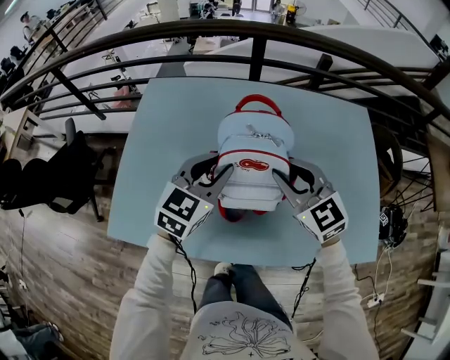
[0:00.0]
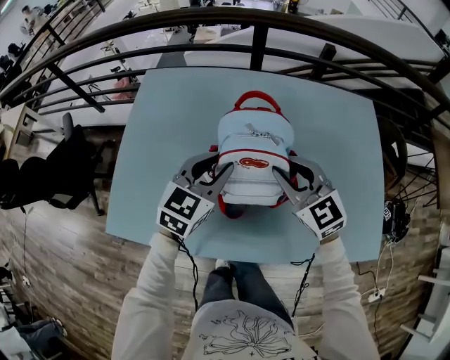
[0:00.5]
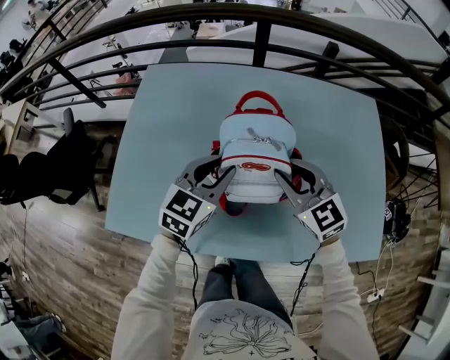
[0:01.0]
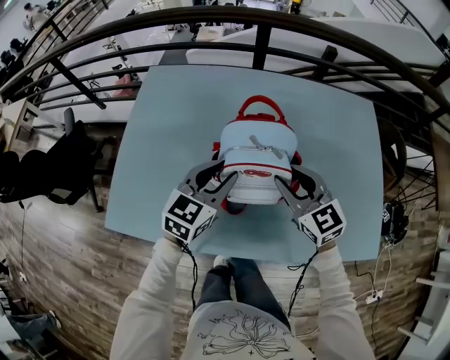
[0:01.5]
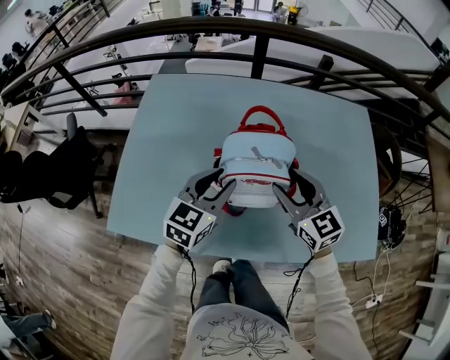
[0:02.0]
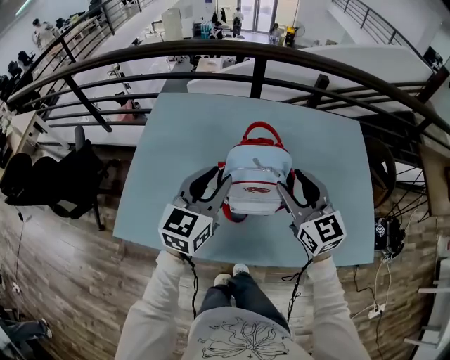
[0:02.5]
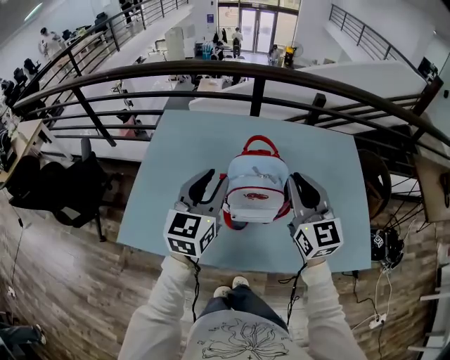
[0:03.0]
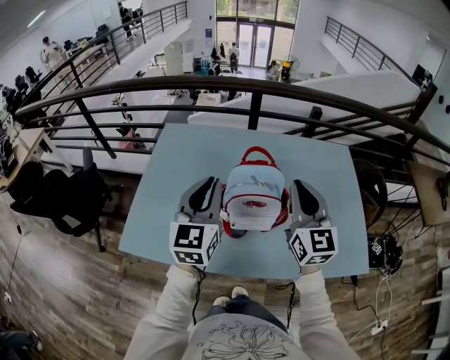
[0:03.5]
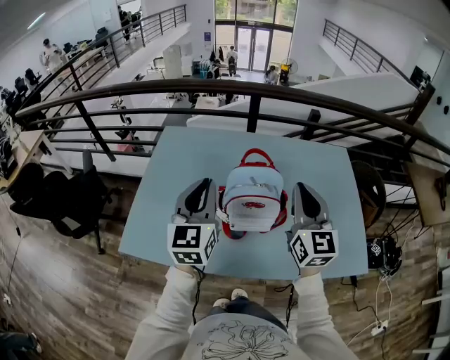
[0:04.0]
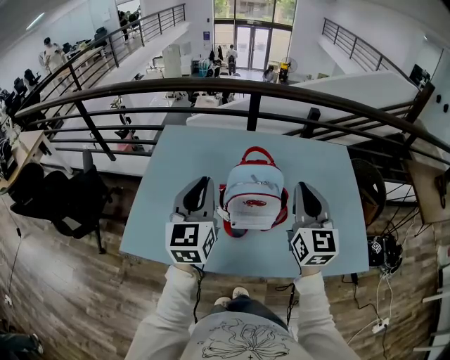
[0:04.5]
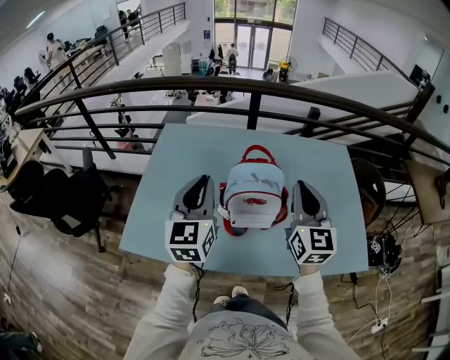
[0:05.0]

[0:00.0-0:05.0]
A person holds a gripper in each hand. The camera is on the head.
0:00.0 to 0:02.5: The left gripper goes roughly 5 cm backward, while the right gripper ends up about 5 cm from where it was, and opens up.
0:02.5 to 0:05.0: The left gripper moves upward and to the left, approximately 10 cm, rotates approximately 20 degrees, and closes. Meanwhile the right gripper shifts approximately 10 cm upward, swivels some 20 degrees, and closes up.

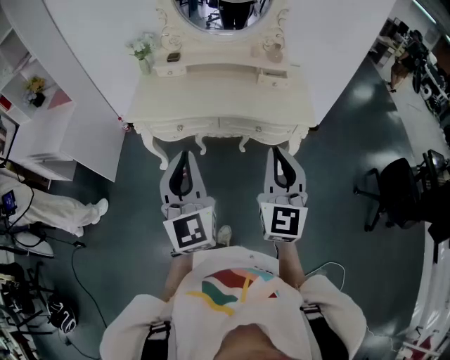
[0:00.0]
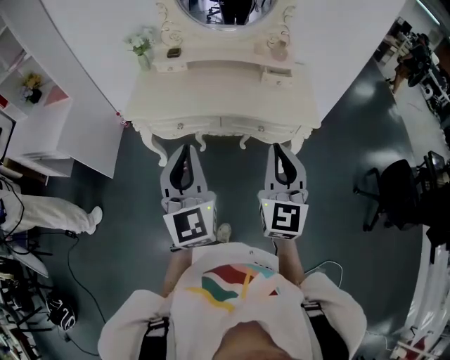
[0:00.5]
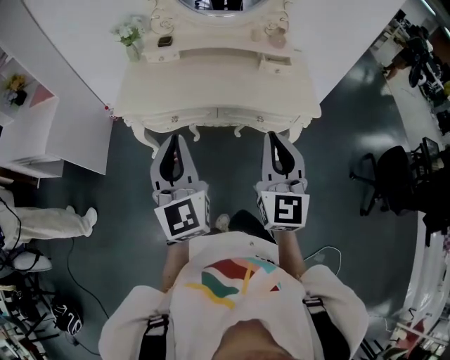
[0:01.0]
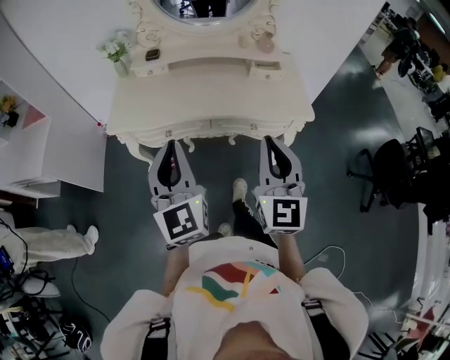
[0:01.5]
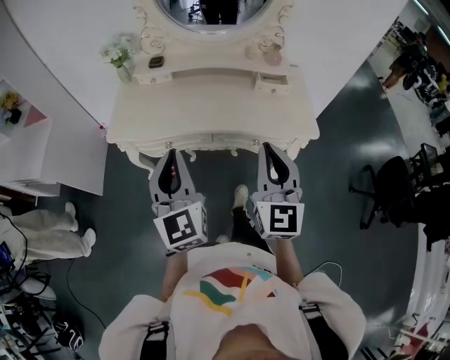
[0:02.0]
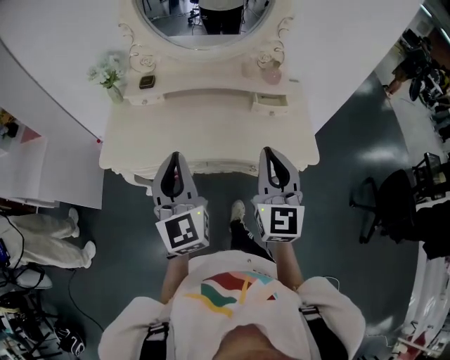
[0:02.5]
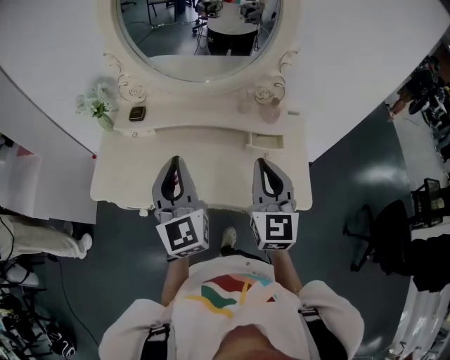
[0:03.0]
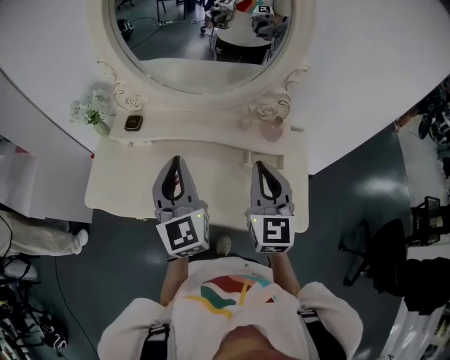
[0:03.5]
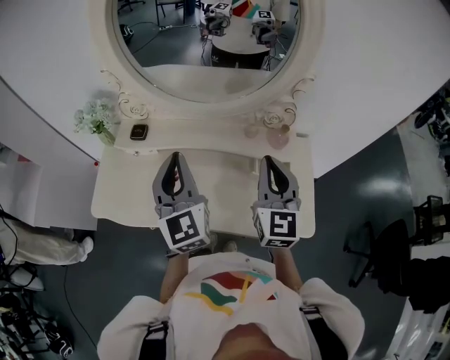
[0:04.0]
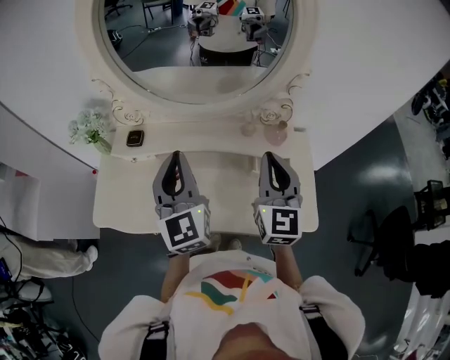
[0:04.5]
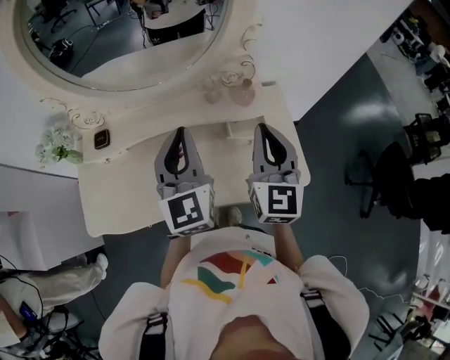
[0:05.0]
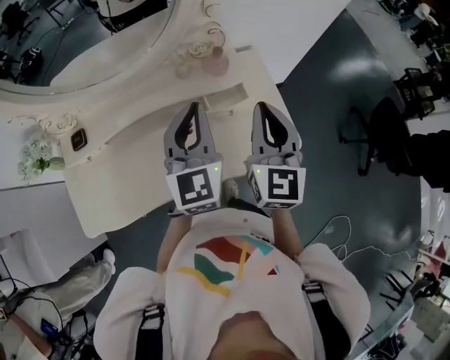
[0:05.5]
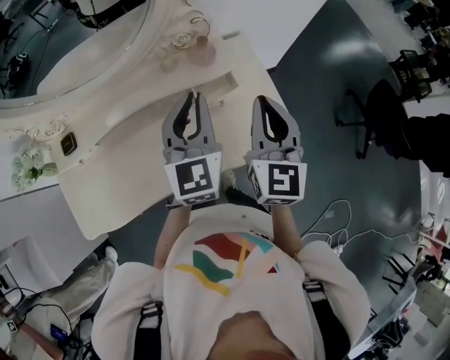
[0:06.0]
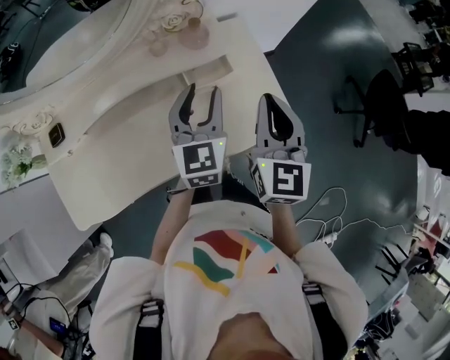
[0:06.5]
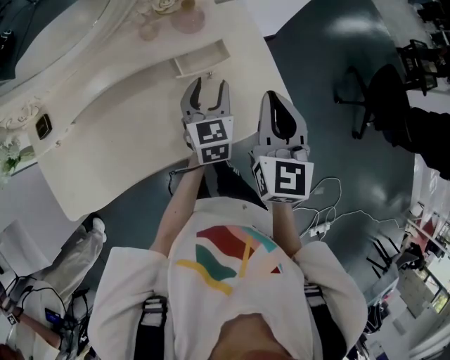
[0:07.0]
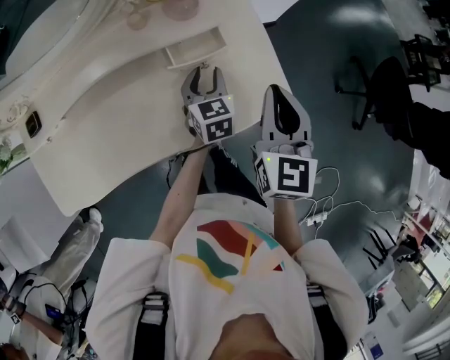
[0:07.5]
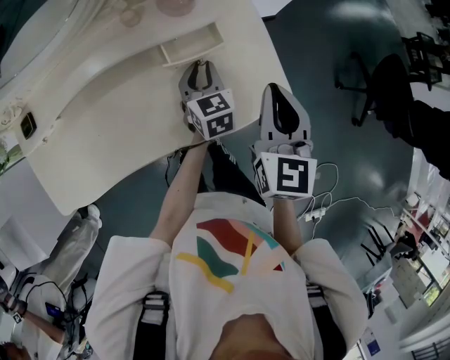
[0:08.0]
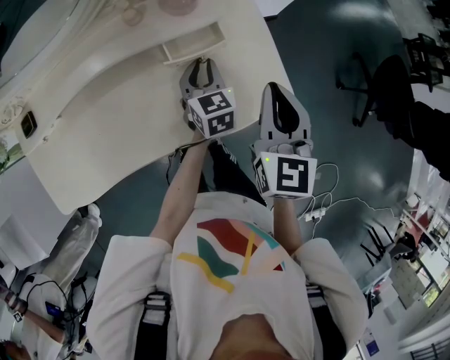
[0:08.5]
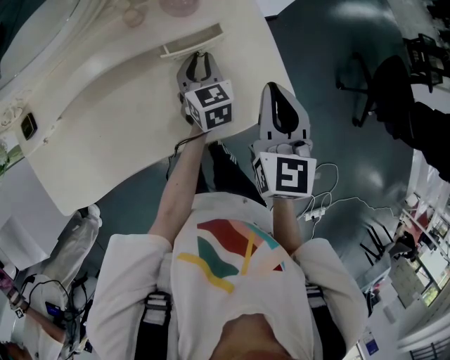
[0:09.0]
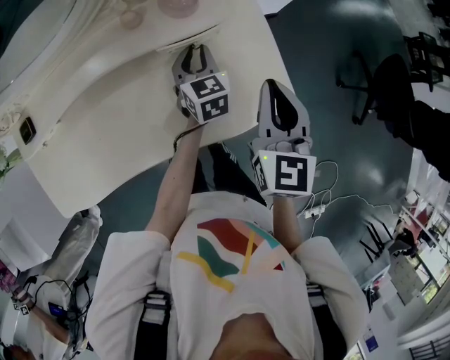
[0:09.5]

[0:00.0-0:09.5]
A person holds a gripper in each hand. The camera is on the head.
0:00.0 to 0:02.0: The two grippers go approximately 15 cm forward.
0:02.0 to 0:04.0: The two grippers go roughly 35 cm forward.
0:04.0 to 0:05.5: The right gripper changes place by approximately 10 cm, and turns by approximately 20 degrees; the left gripper changes place by about 20 cm, and turns by roughly 40 degrees.
0:05.5 to 0:07.5: The left gripper shifts roughly 30 cm downward, angles its fingers downward, by about 30 degrees, and opens, while the right gripper is displaced downward and to the right by approximately 15 cm.
0:07.5 to 0:09.5: The left gripper goes roughly 5 cm forward.

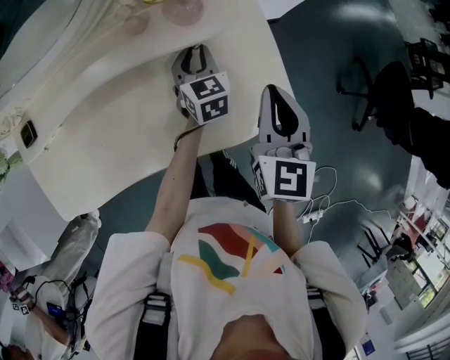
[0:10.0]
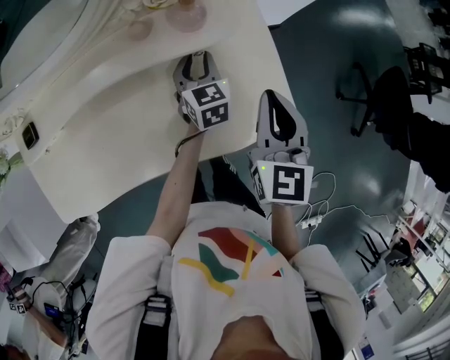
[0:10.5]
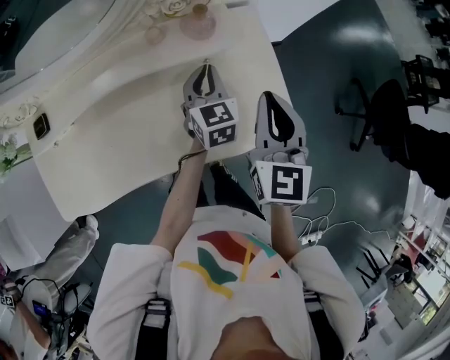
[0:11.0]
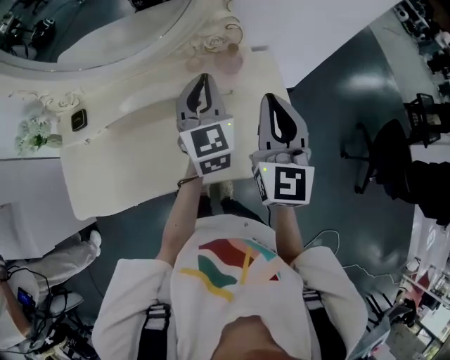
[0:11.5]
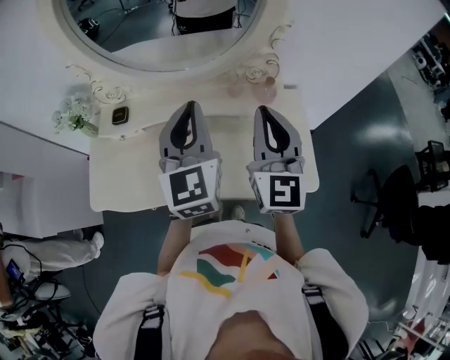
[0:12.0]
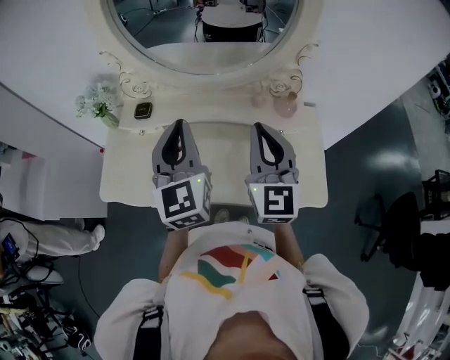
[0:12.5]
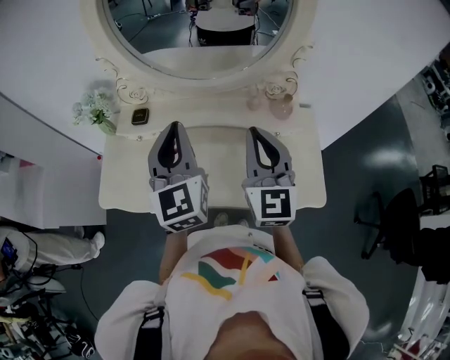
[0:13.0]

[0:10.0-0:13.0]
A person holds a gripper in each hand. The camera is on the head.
0:10.0 to 0:11.5: The left gripper travels upward by about 25 cm, and rotates about 20 degrees; the right gripper is displaced upward and to the left by approximately 15 cm, and swivels about 20 degrees.
0:11.5 to 0:13.0: The left gripper moves to the left and upward, roughly 25 cm, and changes its angle by approximately 20 degrees. Meanwhile the right gripper goes about 15 cm to the left.

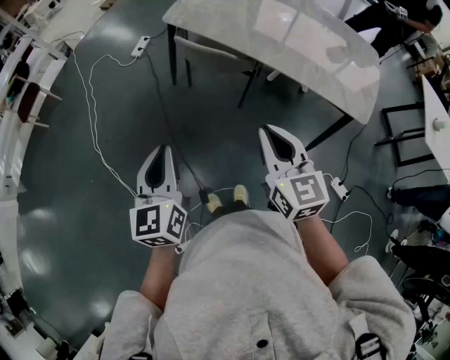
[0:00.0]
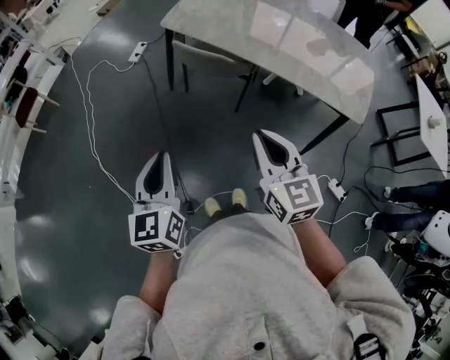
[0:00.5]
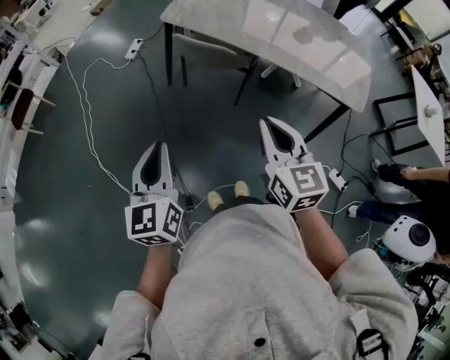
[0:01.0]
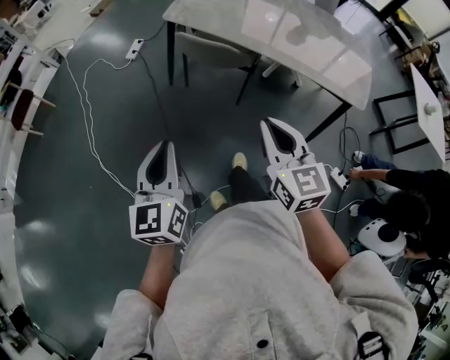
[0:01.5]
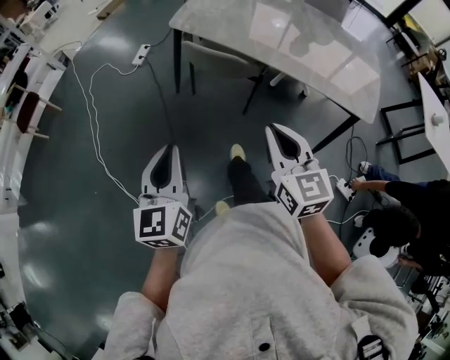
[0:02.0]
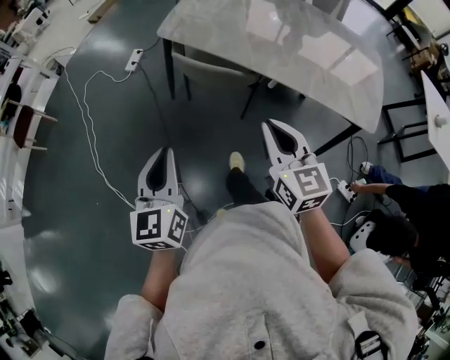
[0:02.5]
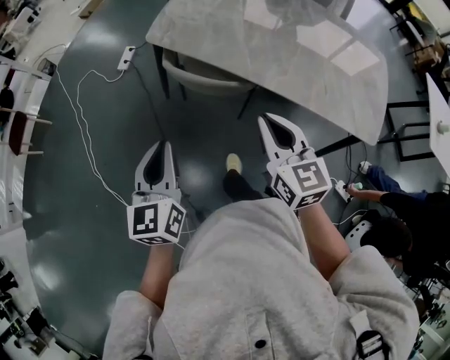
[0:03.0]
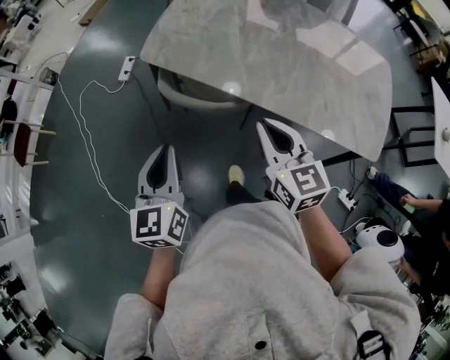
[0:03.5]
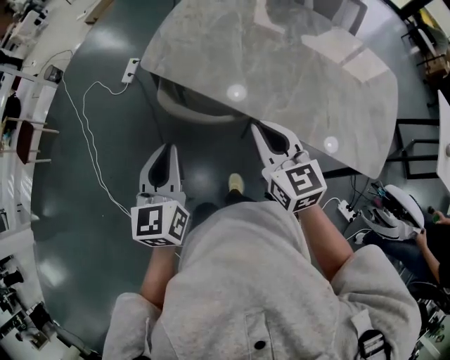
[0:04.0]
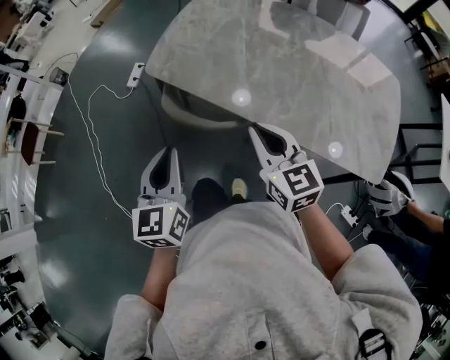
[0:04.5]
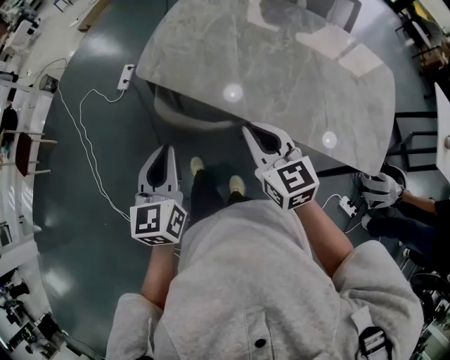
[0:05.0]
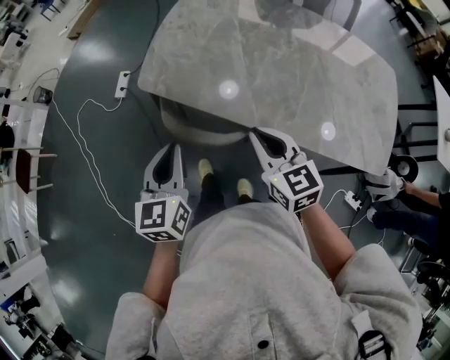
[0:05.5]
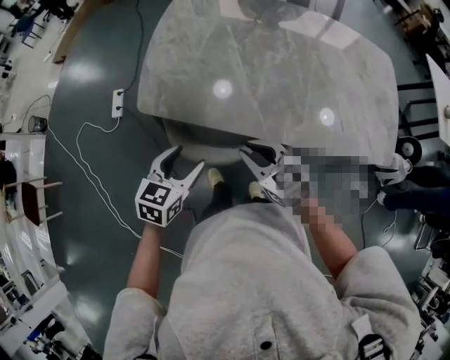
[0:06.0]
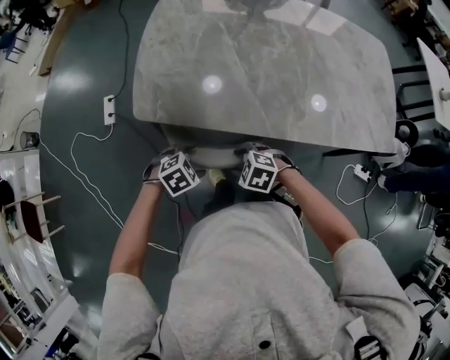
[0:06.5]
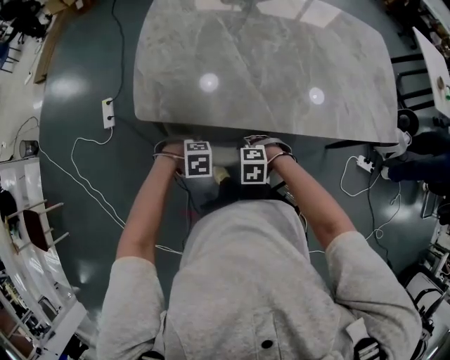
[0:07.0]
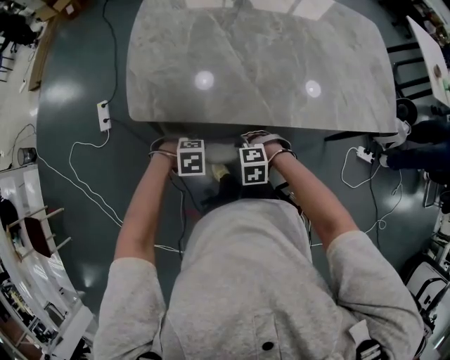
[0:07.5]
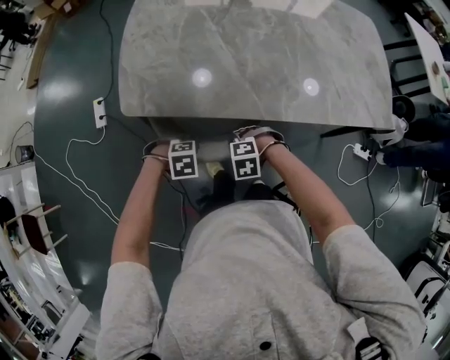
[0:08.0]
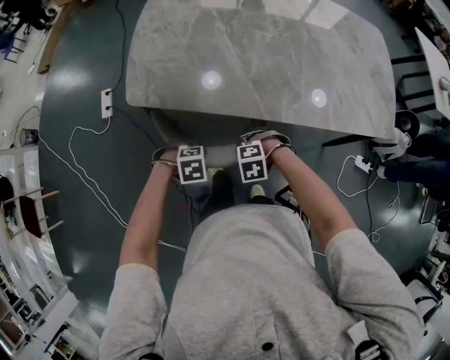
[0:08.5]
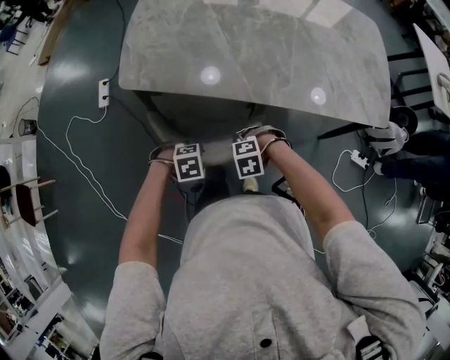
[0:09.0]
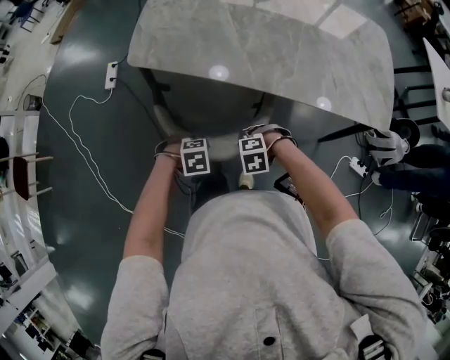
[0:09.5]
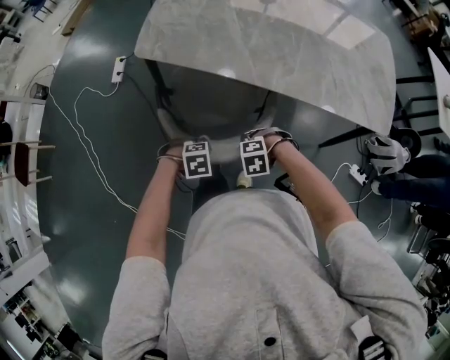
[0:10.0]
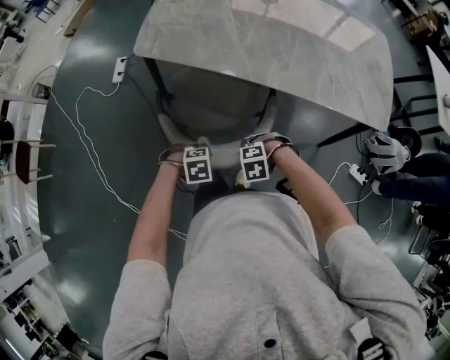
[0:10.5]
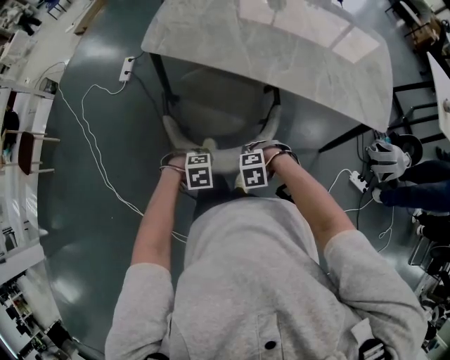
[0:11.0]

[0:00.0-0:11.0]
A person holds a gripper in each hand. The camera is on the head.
0:00.0 to 0:02.0: The right gripper shifts some 5 cm to the left. Meanwhile the left gripper ends up about 5 cm from where it was.
0:02.0 to 0:03.5: The two grippers go about 30 cm forward.
0:03.5 to 0:05.5: The two grippers go roughly 15 cm forward.
0:05.5 to 0:07.5: The grippers both shift downward by about 30 cm. The left gripper angles its fingers downward, by some 50 degrees, and opens its fingers; the right gripper tips its fingers downward by roughly 50 degrees, and opens.
0:07.5 to 0:09.0: The right gripper changes place by some 15 cm. The left gripper changes place by roughly 15 cm.
0:09.0 to 0:11.0: The left gripper moves some 20 cm. The right gripper moves some 20 cm.
